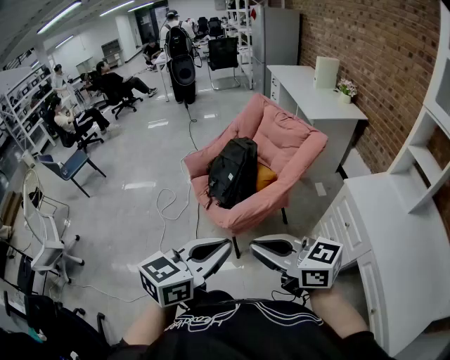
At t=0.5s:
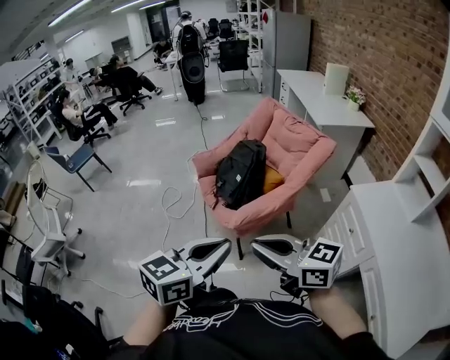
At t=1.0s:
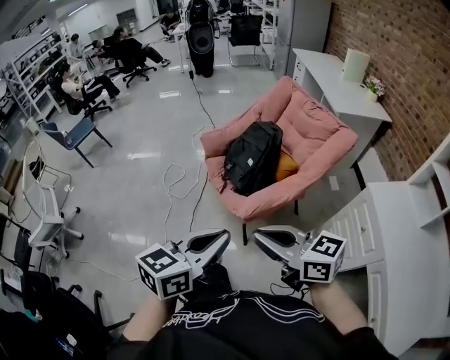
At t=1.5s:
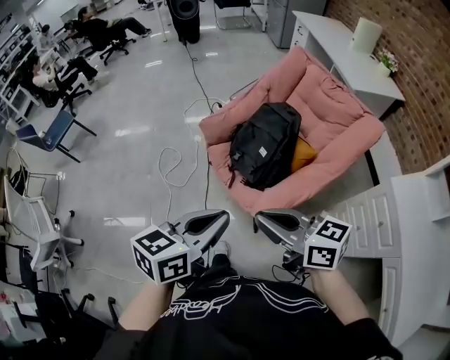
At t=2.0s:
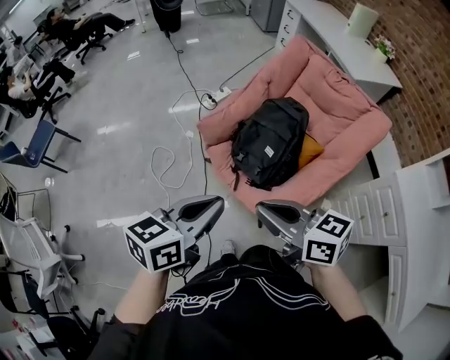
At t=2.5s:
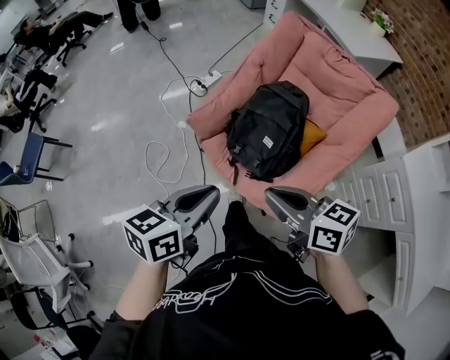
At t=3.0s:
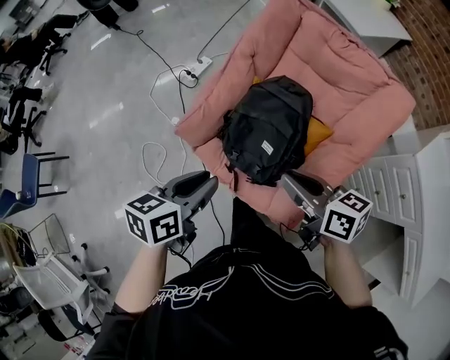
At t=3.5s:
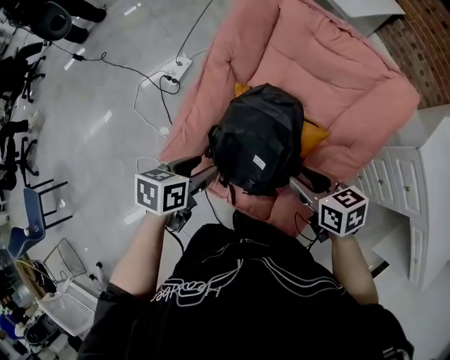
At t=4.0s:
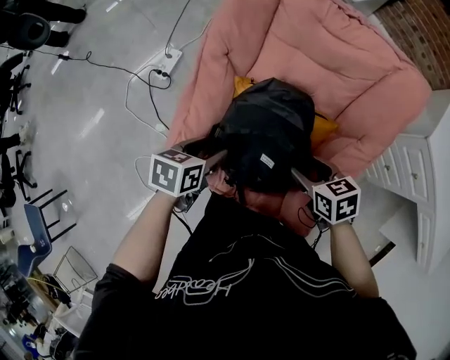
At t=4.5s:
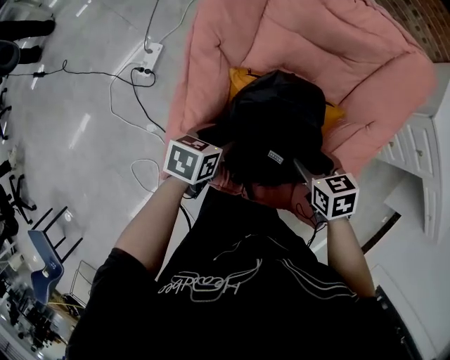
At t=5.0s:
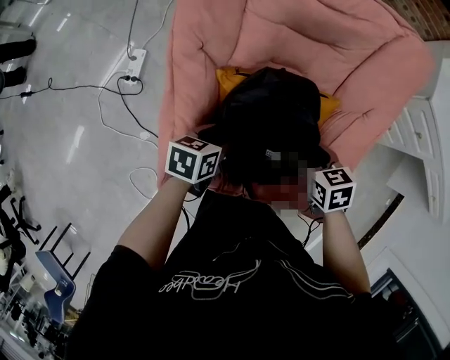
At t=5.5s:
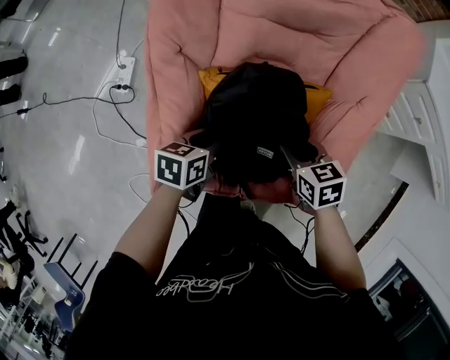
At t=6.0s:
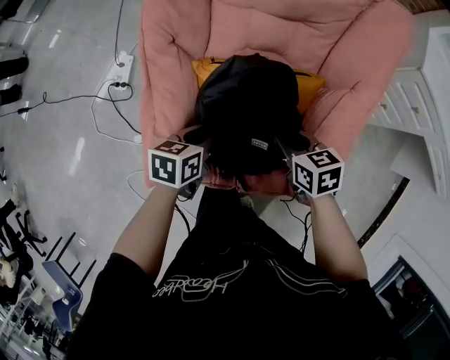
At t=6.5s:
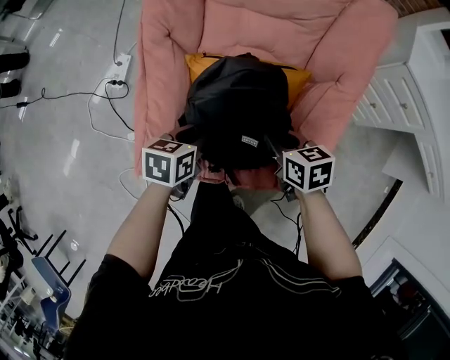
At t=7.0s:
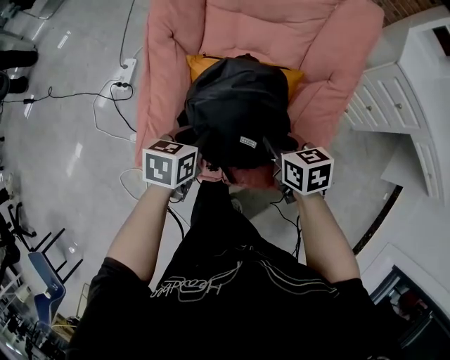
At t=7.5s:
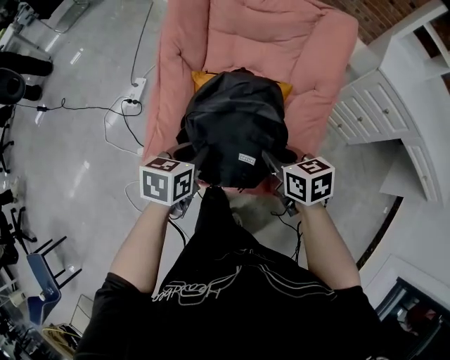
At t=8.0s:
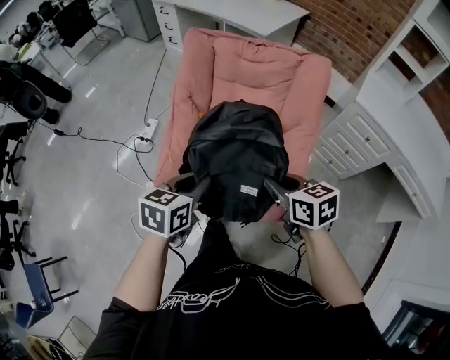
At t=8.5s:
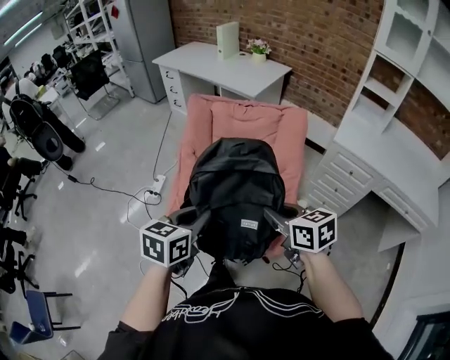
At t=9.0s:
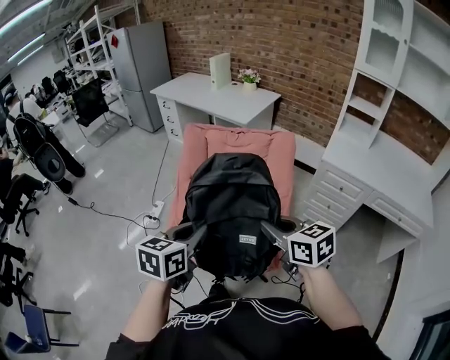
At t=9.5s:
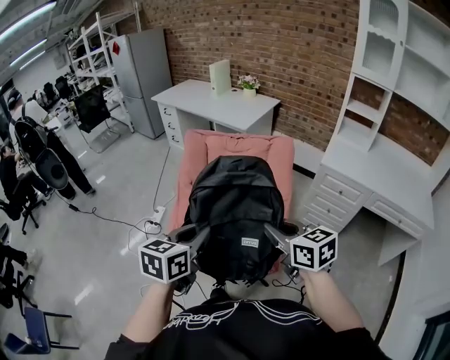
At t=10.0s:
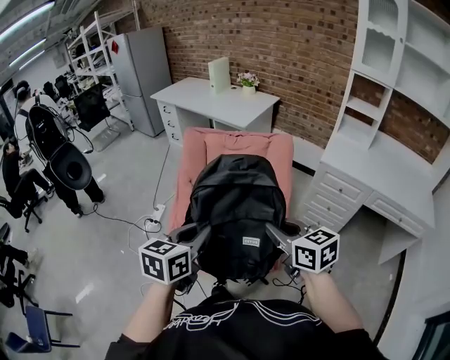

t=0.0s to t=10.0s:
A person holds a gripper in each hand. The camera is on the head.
t=0.0s to t=2.0s: Both grippers travel together forward and to the left, some 40 cm. The right gripper turns by some 20 degrees.
t=2.0s to t=4.0s: The right gripper shifts by approximately 40 cm, points its fingers approximately 40 degrees further downward, and opens. The left gripper ends up approximately 50 cm from where it was, tips its fingers downward by roughly 30 degrees, and opens its fingers.
t=4.0s to t=6.0s: The grippers both shift downward by about 5 cm. The left gripper closes. Meanwhile the right gripper closes its fingers.
t=6.0s to t=8.0s: The grippers both shift upward and backward by roughly 25 cm.
t=8.0s to t=10.0s: The grippers both shift upward and backward by some 20 cm. The right gripper rotates roughly 20 degrees.

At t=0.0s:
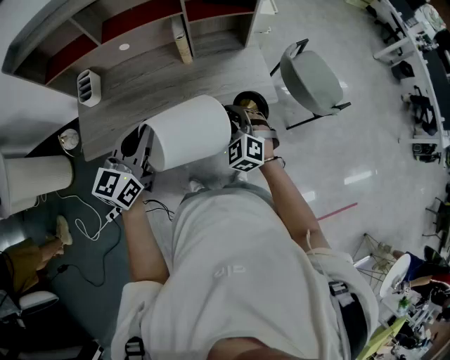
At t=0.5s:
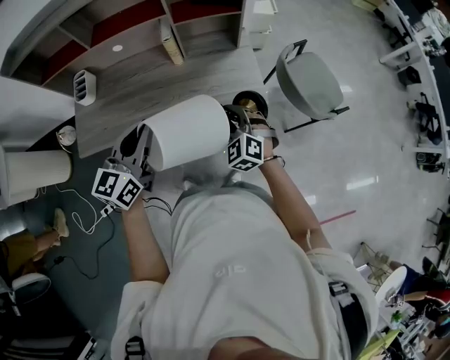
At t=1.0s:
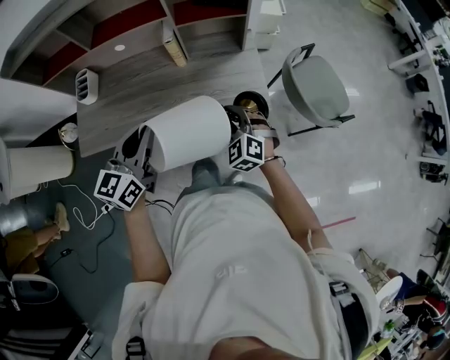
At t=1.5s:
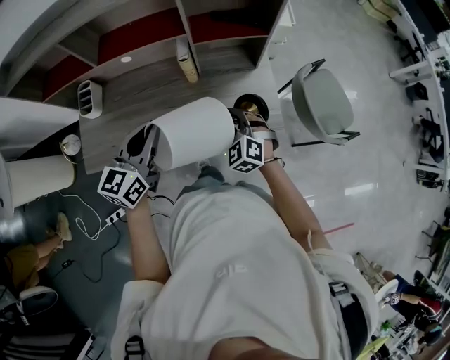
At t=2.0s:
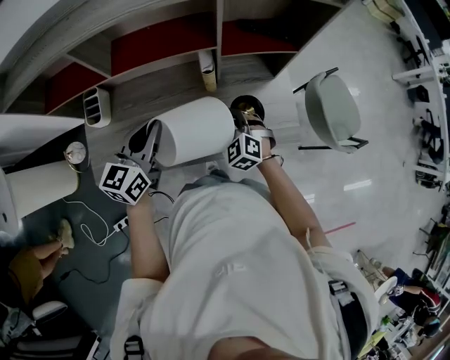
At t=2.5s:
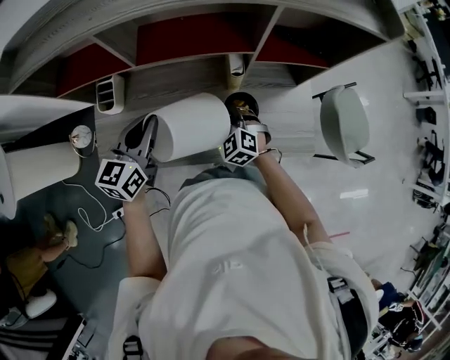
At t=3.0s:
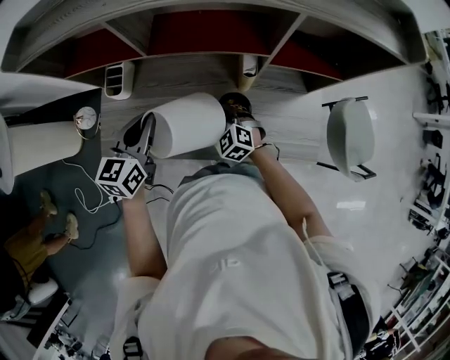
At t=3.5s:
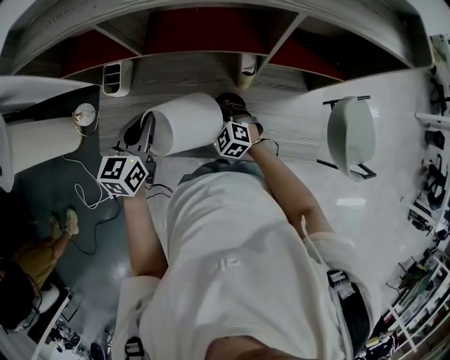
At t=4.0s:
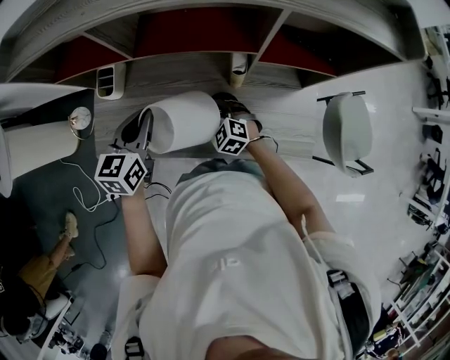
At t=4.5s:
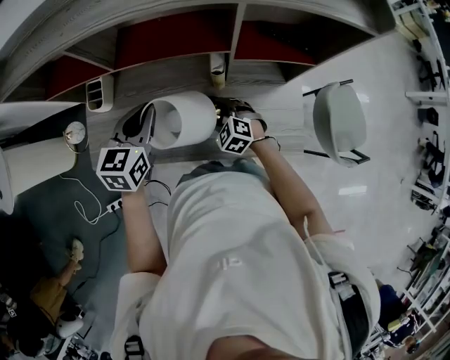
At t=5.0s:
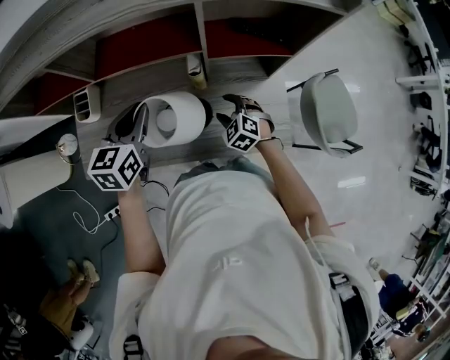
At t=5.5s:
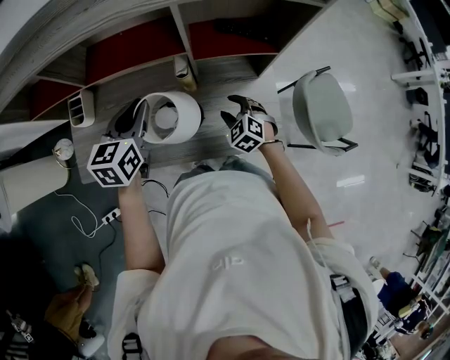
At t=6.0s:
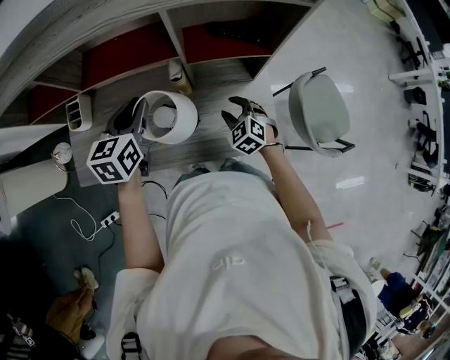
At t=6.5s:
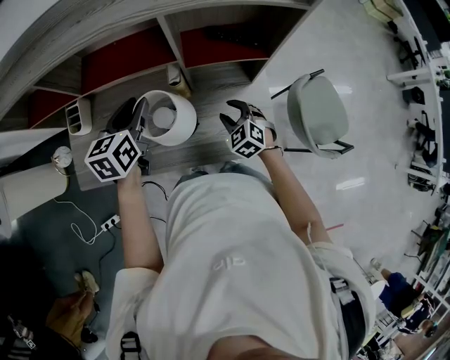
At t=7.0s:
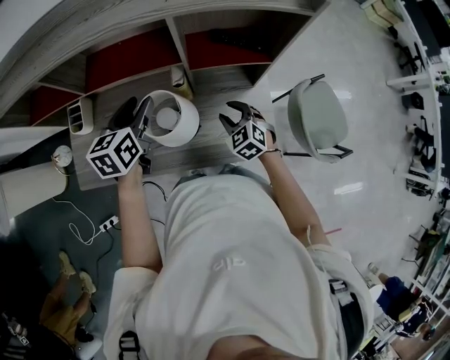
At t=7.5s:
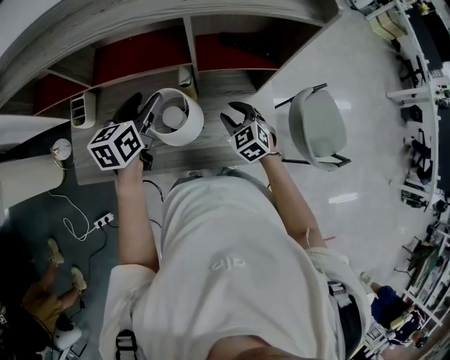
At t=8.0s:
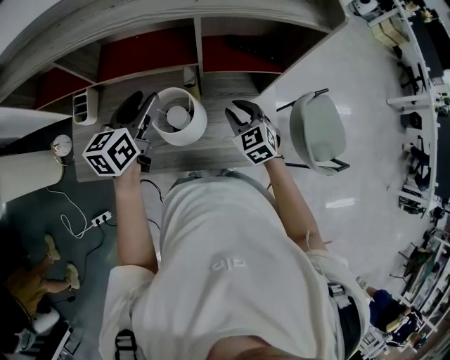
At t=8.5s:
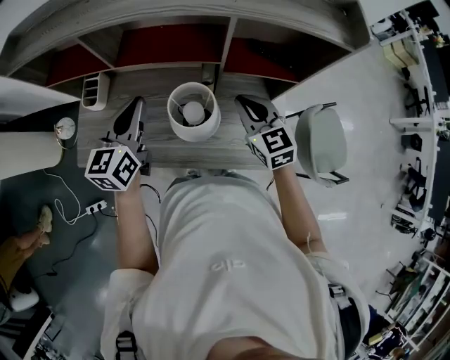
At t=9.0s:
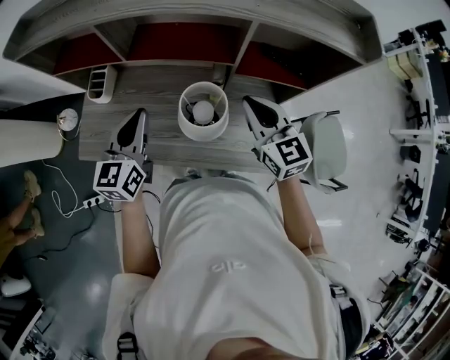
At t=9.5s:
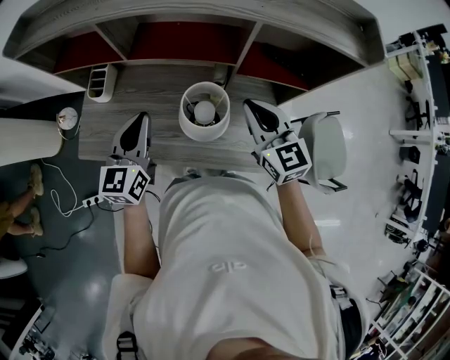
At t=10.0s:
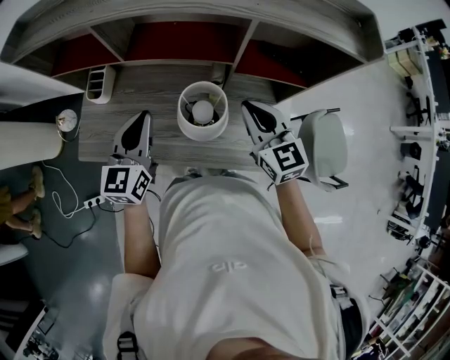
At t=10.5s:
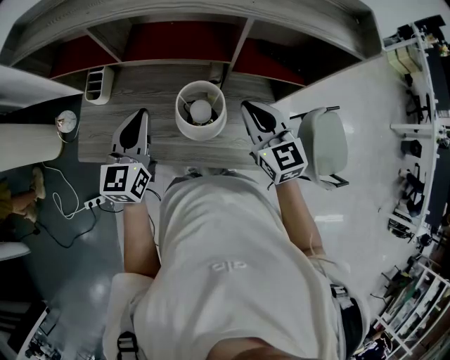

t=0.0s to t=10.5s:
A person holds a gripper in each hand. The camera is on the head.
t=0.0s to t=2.0s: The left gripper heads forward, covering about 25 cm, while the right gripper travels forward and to the left by some 25 cm.
t=2.0s to t=4.0s: The left gripper is displaced to the left by roughly 5 cm, and turns by approximately 20 degrees; the right gripper travels to the left, downward and forward by approximately 15 cm, and swivels about 20 degrees.
t=4.0s to t=6.5s: The right gripper heads to the right, covering about 25 cm, and swivels approximately 20 degrees. The left gripper travels to the right by some 15 cm, and opens up.
t=6.5s to t=8.5s: The left gripper travels to the left and upward by roughly 10 cm, and closes its fingers. The right gripper heads upward, covering some 15 cm, turns by some 30 degrees, and closes its fingers.

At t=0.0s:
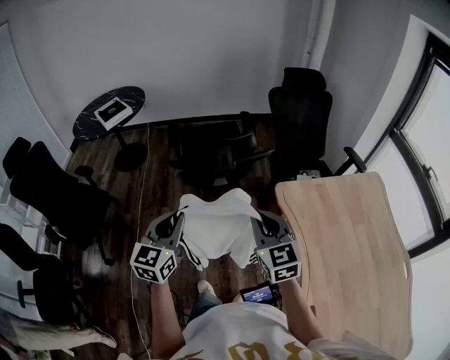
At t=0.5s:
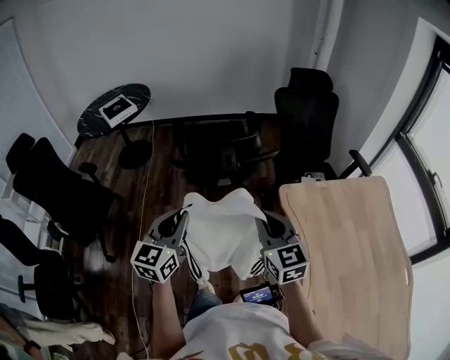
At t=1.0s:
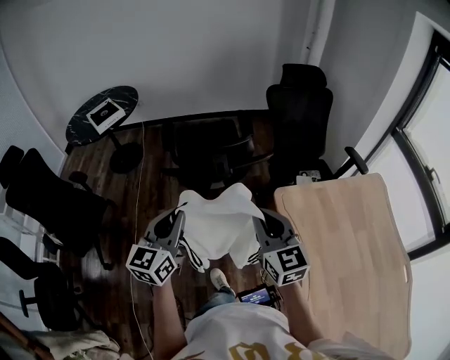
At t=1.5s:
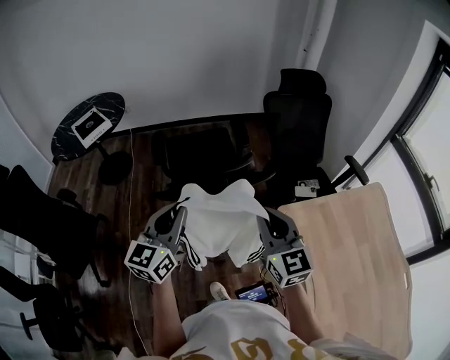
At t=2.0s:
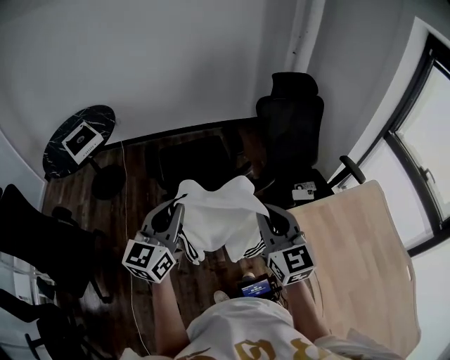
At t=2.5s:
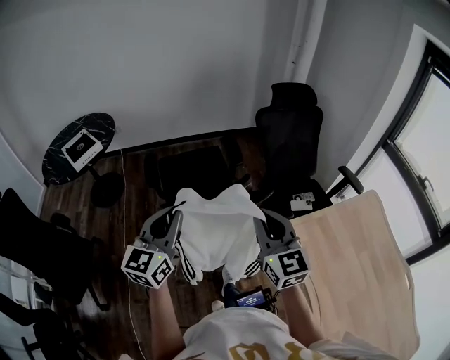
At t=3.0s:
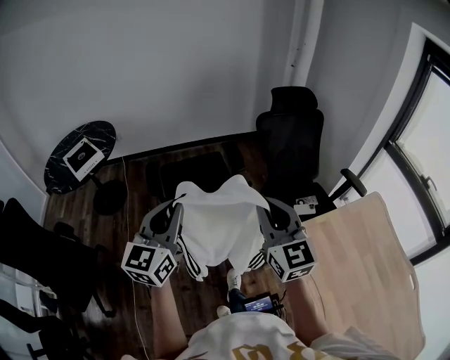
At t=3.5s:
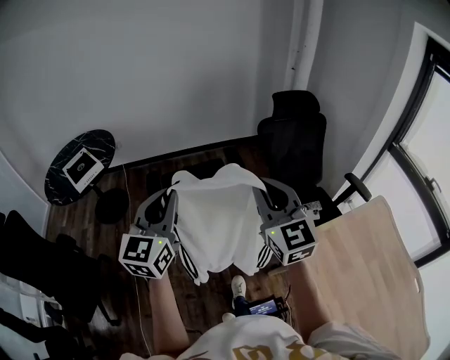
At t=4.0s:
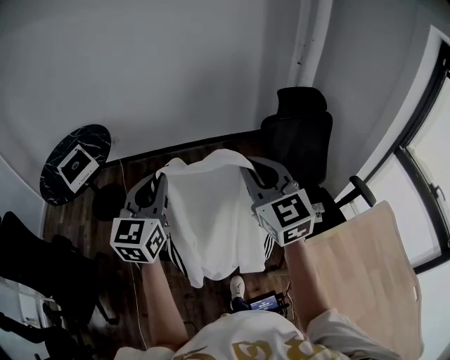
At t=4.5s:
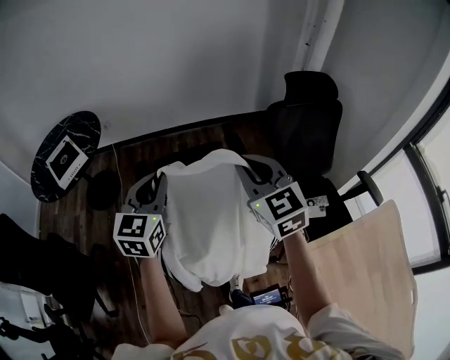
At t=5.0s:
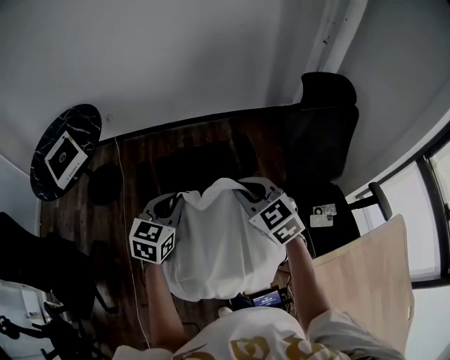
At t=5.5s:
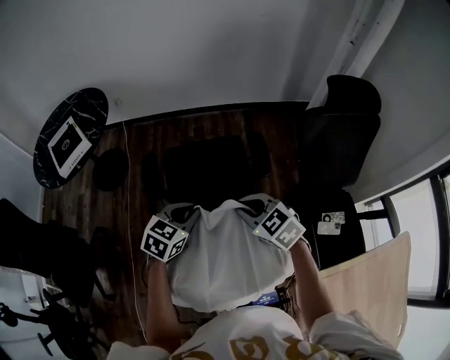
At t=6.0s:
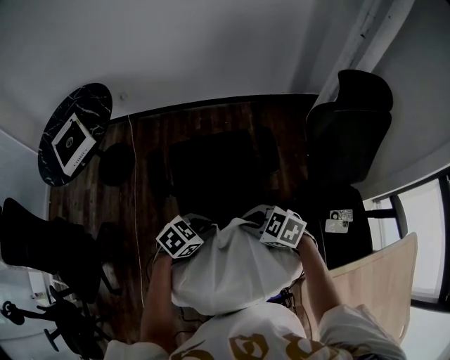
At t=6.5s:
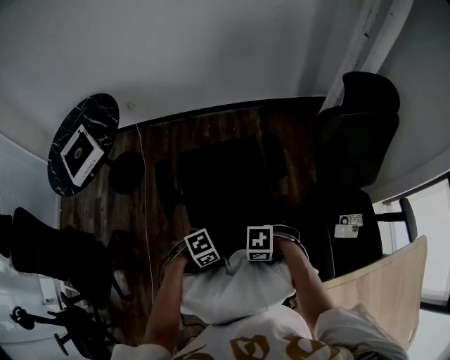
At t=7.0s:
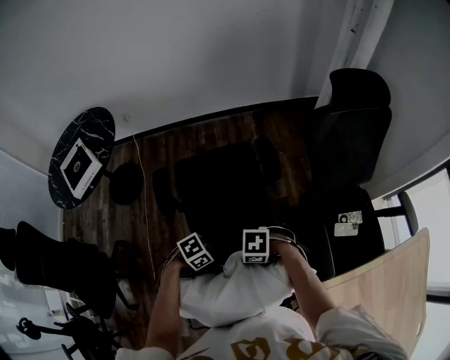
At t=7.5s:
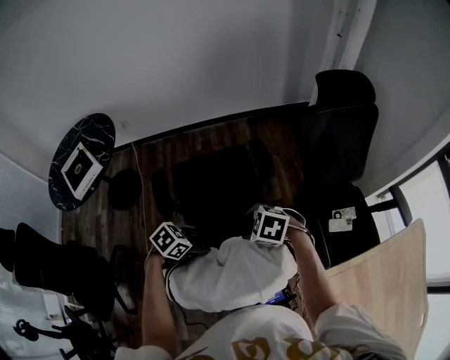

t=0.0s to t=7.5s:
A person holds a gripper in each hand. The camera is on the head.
t=0.0s to t=2.0s: The grippers both shift forward by approximately 20 cm.
t=2.0s to t=4.0s: The right gripper is displaced forward and upward by roughly 25 cm; the left gripper heads forward, covering about 20 cm.
t=4.0s to t=5.5s: The grippers both shift downward and forward by some 35 cm. The right gripper points its fingers roughly 40 degrees further downward, while the left gripper angles its fingers downward, by roughly 40 degrees.
t=5.5s to t=7.5s: Both grippers move downward, roughly 5 cm. The right gripper changes its angle by some 30 degrees, and opens, while the left gripper rotates roughly 40 degrees, and opens.
